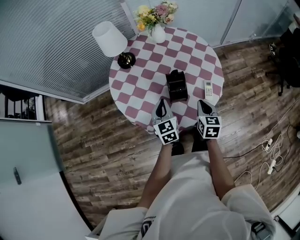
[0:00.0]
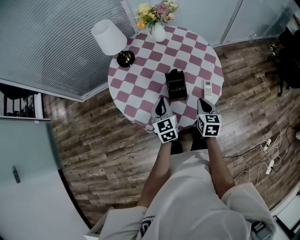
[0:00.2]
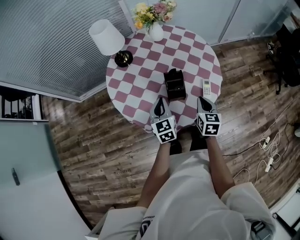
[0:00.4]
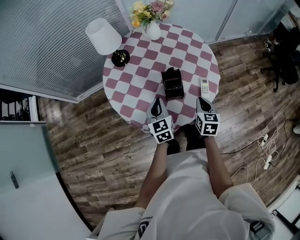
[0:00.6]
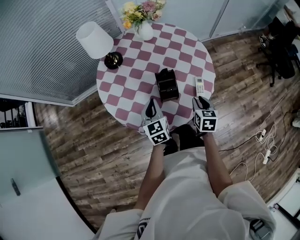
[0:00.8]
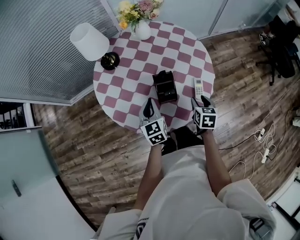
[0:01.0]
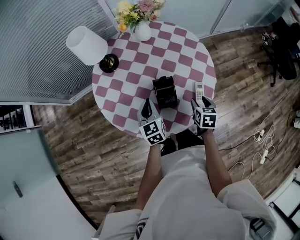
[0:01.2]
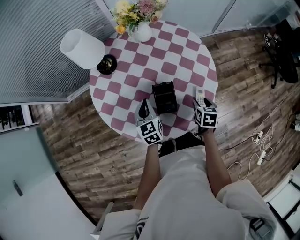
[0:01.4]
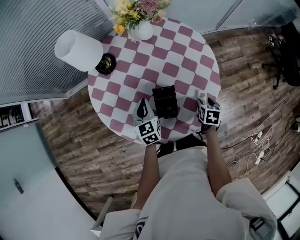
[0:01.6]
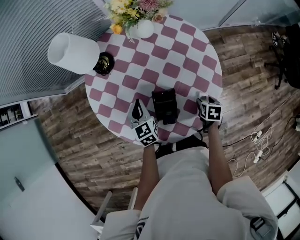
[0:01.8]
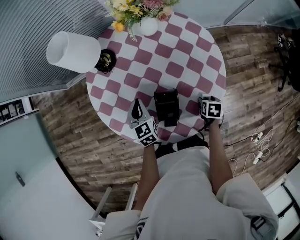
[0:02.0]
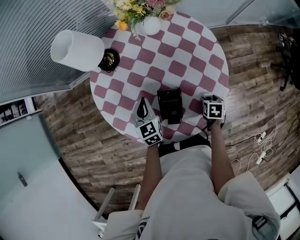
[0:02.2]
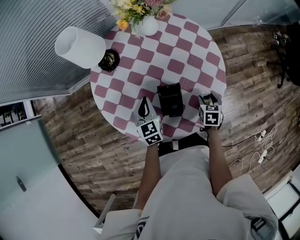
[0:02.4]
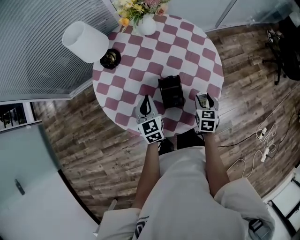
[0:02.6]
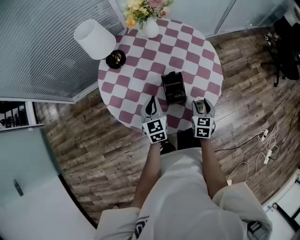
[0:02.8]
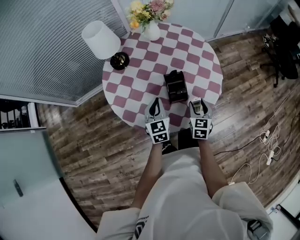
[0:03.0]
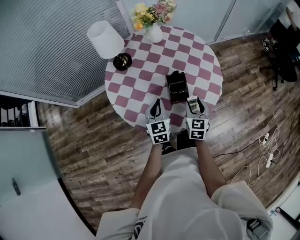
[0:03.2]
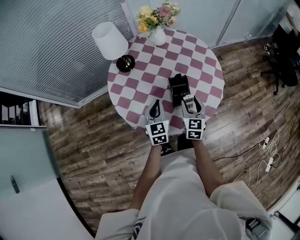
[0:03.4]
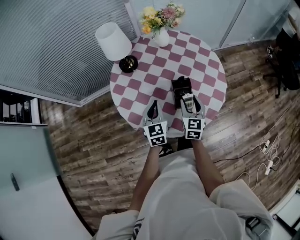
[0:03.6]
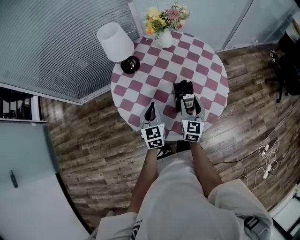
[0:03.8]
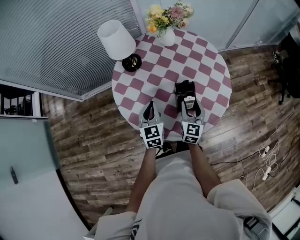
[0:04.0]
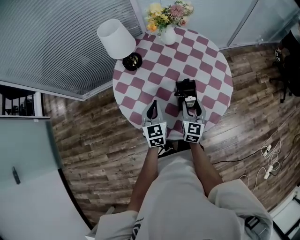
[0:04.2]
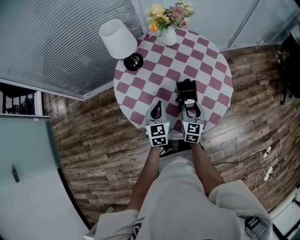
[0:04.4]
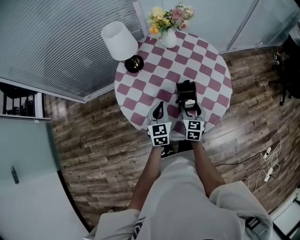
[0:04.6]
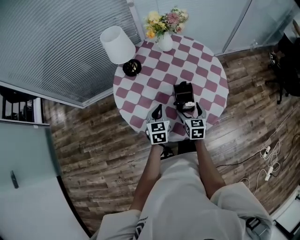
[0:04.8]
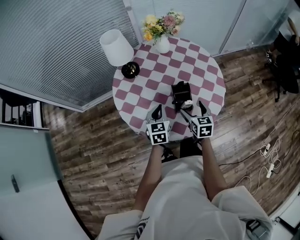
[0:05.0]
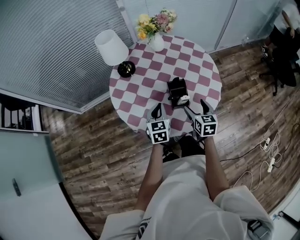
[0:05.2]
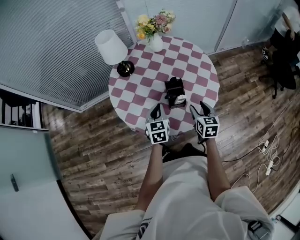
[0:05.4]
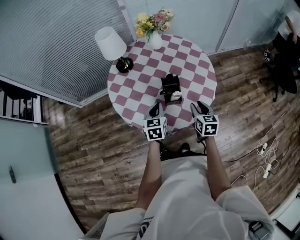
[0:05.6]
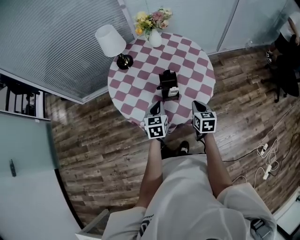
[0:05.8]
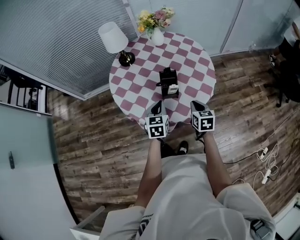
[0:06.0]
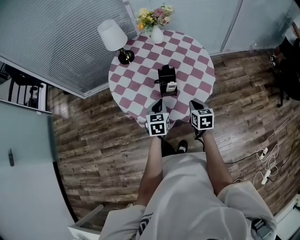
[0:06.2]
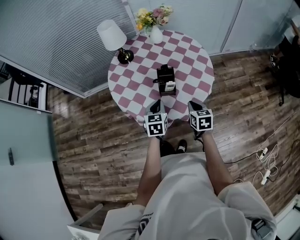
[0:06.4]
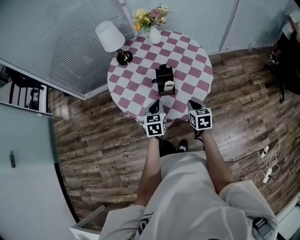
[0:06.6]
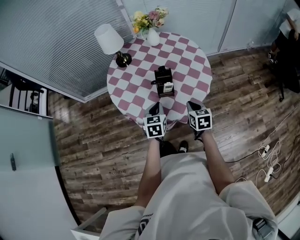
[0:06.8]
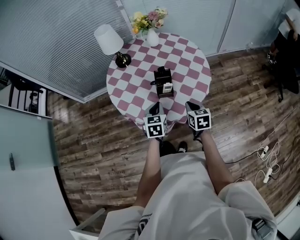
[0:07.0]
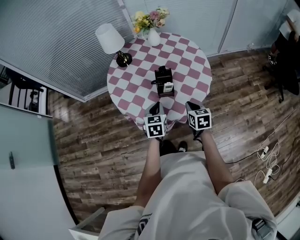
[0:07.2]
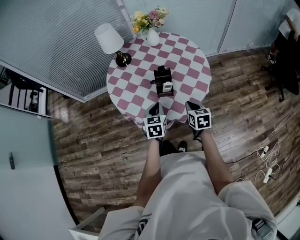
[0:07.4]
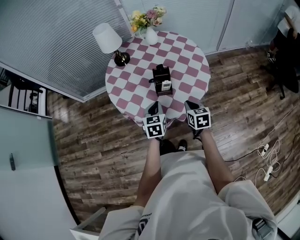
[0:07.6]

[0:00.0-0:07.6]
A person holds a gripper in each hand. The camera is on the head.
0:00.0 to 0:01.6: The left gripper heads forward and downward, covering approximately 15 cm; the right gripper goes approximately 20 cm downward, to the right and forward, rotates some 30 degrees, and opens its fingers.
0:01.6 to 0:03.0: The left gripper changes place by about 10 cm. The right gripper ends up some 15 cm from where it was, and tilts its fingers approximately 30 degrees upward.
0:03.0 to 0:04.6: The right gripper travels to the left by roughly 10 cm.
0:04.6 to 0:06.0: The right gripper moves to the right, backward and upward, some 15 cm, and closes up, while the left gripper travels backward and to the right by approximately 15 cm.
0:06.0 to 0:07.6: The grippers make only small movements.

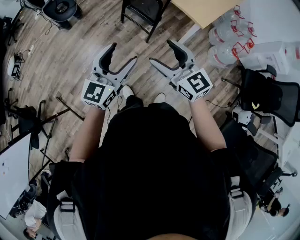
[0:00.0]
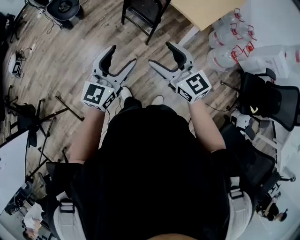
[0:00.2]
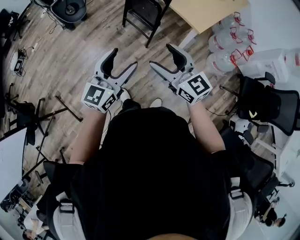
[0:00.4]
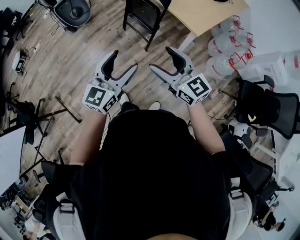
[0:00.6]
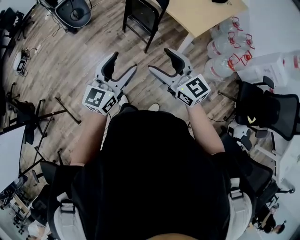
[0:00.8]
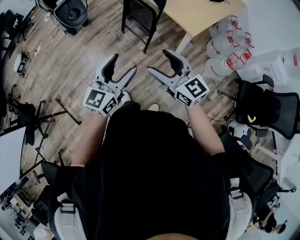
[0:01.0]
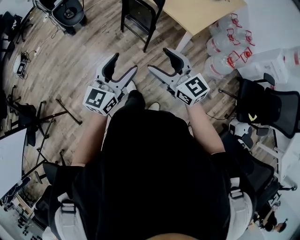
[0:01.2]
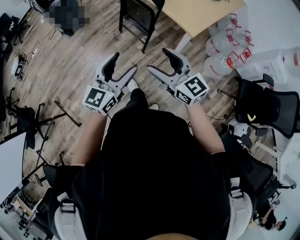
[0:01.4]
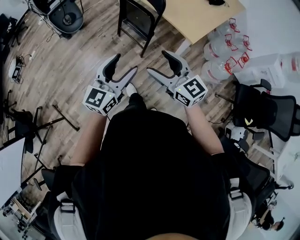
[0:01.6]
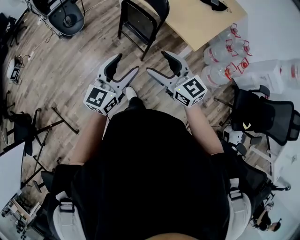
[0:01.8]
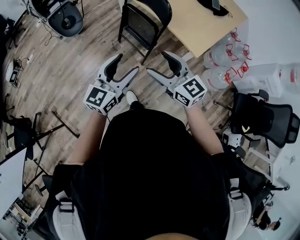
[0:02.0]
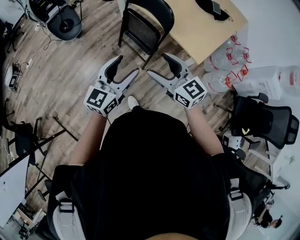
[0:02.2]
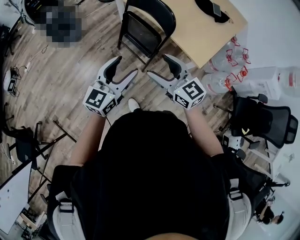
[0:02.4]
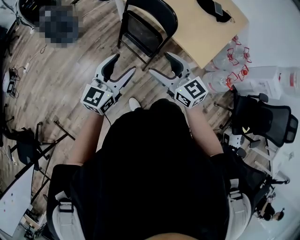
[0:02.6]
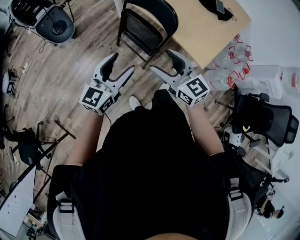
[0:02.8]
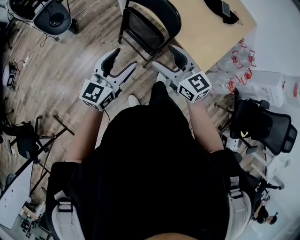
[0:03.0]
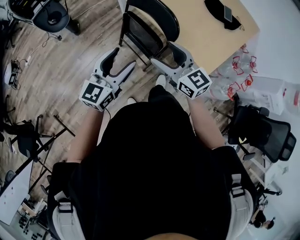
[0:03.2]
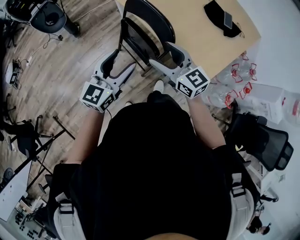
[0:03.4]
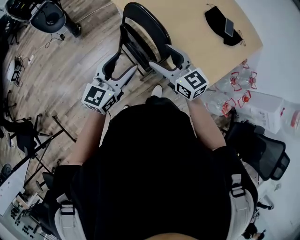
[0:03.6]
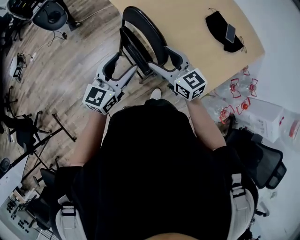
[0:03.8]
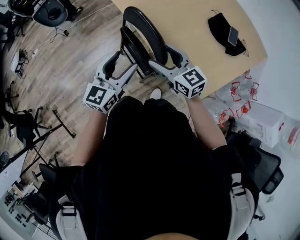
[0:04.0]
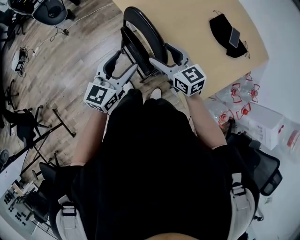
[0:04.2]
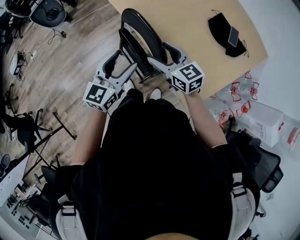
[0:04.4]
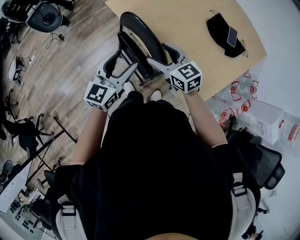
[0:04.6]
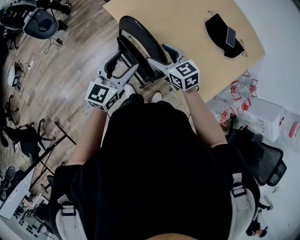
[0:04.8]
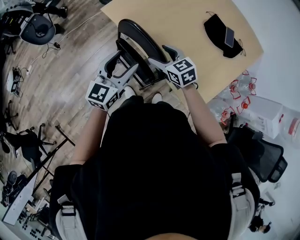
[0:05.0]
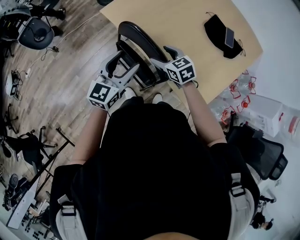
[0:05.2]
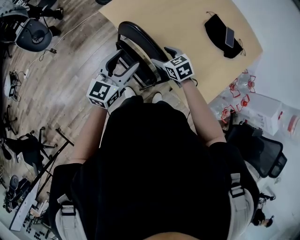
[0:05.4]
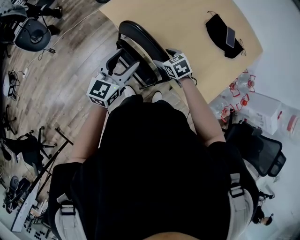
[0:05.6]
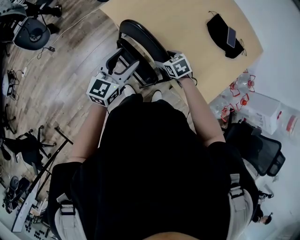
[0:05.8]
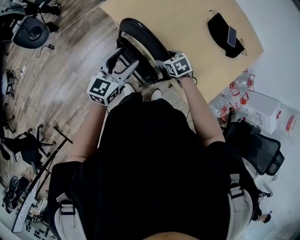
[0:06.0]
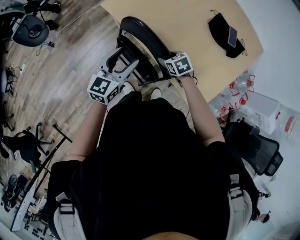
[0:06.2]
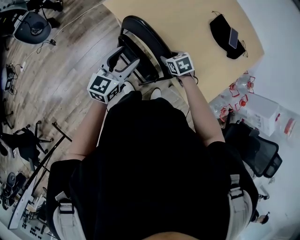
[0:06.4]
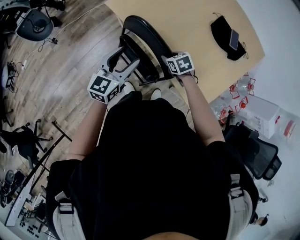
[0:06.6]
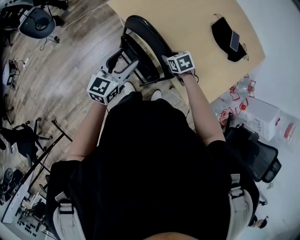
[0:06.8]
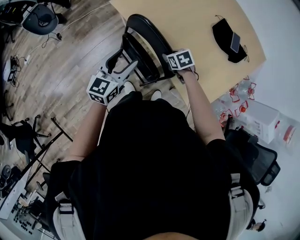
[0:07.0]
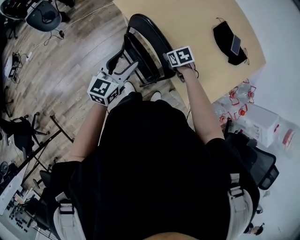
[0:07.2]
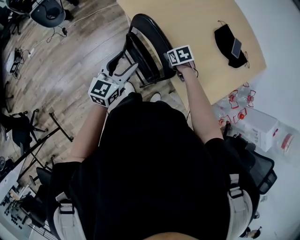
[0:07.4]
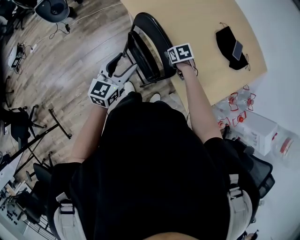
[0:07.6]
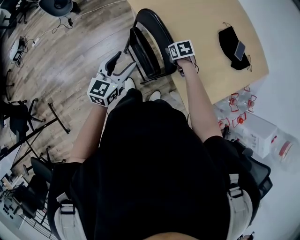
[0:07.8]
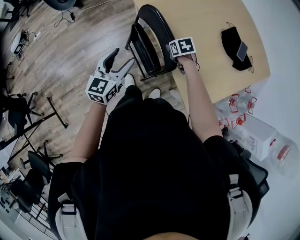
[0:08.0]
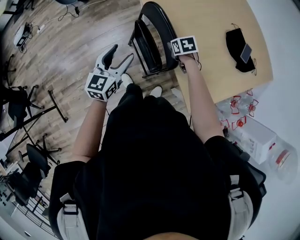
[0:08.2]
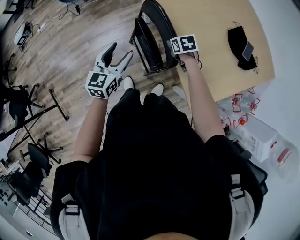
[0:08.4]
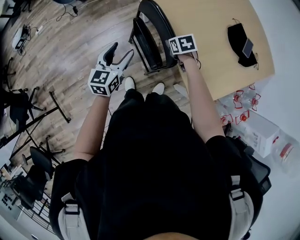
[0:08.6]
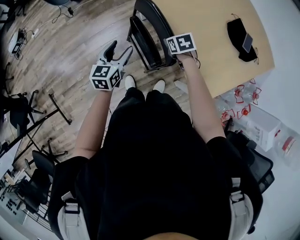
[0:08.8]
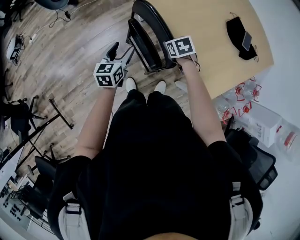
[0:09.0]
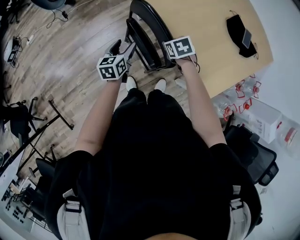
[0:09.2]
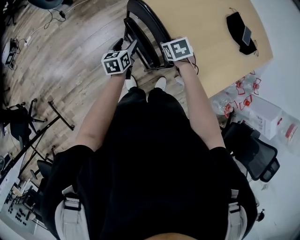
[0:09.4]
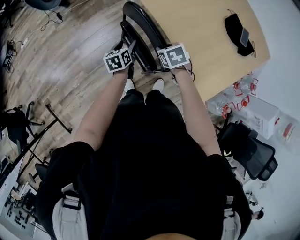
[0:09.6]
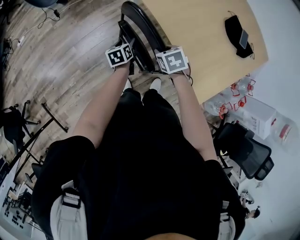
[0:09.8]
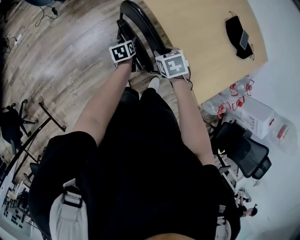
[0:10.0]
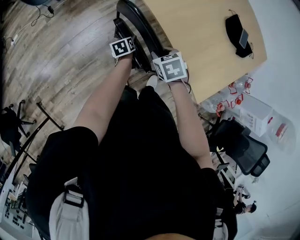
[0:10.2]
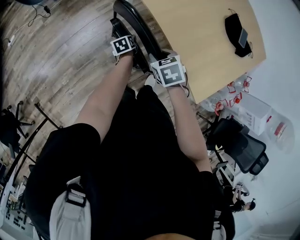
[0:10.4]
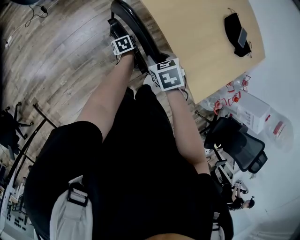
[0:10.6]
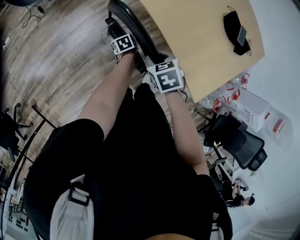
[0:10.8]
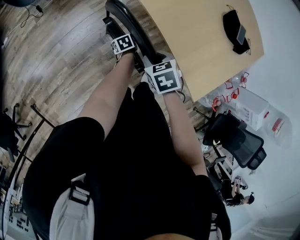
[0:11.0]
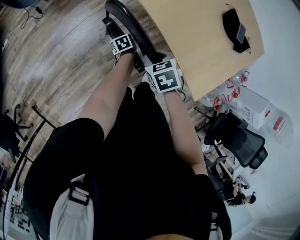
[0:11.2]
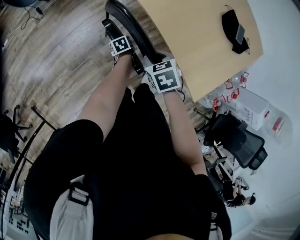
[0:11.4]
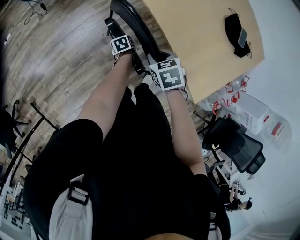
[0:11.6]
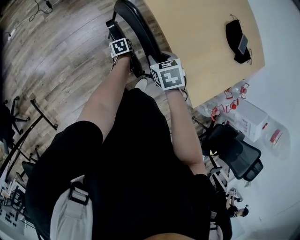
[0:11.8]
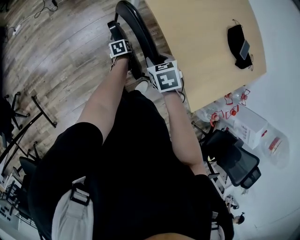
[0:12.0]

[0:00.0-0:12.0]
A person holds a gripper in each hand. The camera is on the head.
0:00.0 to 0:01.6: The grippers both shift to the right by roughly 10 cm.
0:01.6 to 0:03.0: The grippers both shift forward by approximately 30 cm.
0:03.0 to 0:04.4: Both grippers travel together forward and to the right, about 25 cm.
0:04.4 to 0:06.0: The left gripper is displaced forward and downward by about 15 cm. Meanwhile the right gripper is displaced downward and forward by roughly 20 cm, and points its fingers about 40 degrees further downward.
0:06.0 to 0:07.6: The right gripper closes up. Meanwhile the left gripper moves backward, about 10 cm.
0:07.6 to 0:09.0: The right gripper shifts about 10 cm to the left. Meanwhile the left gripper is displaced downward and to the left by some 15 cm.
0:09.0 to 0:10.4: The right gripper travels to the left by approximately 10 cm. Meanwhile the left gripper shifts some 25 cm downward, and changes its angle by approximately 40 degrees.
0:10.4 to 0:12.0: The grippers stay close to where they were, moving slightly.

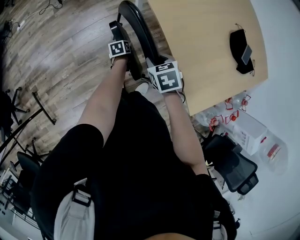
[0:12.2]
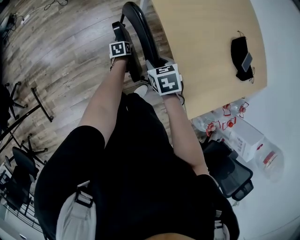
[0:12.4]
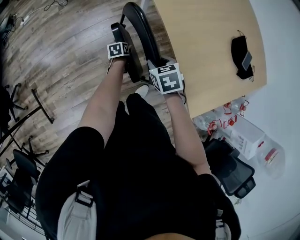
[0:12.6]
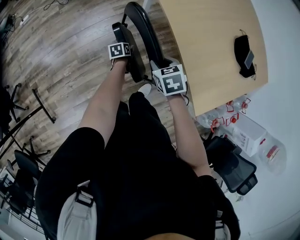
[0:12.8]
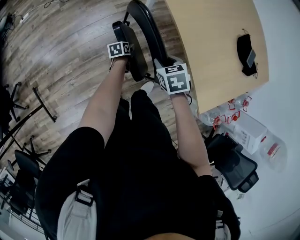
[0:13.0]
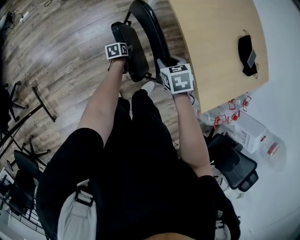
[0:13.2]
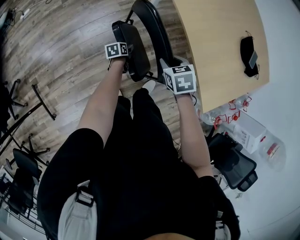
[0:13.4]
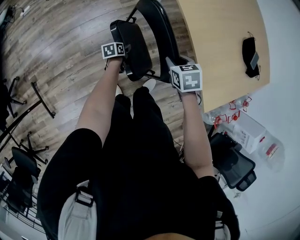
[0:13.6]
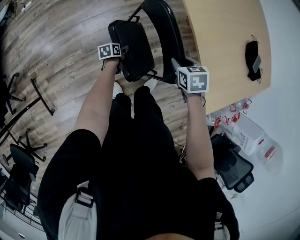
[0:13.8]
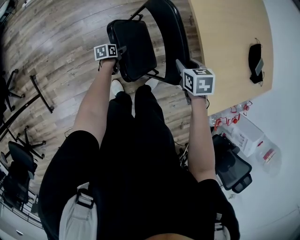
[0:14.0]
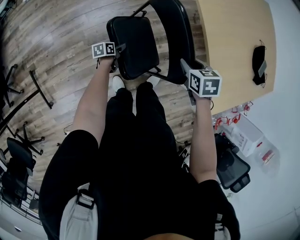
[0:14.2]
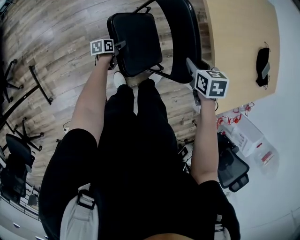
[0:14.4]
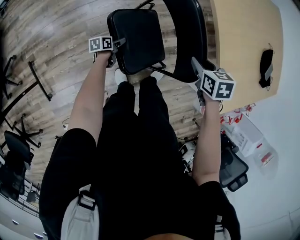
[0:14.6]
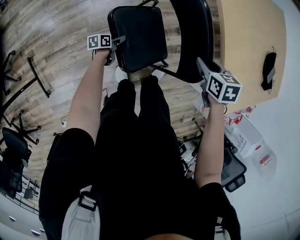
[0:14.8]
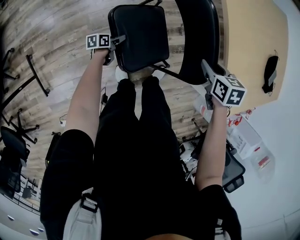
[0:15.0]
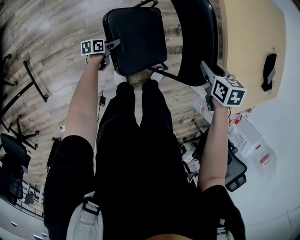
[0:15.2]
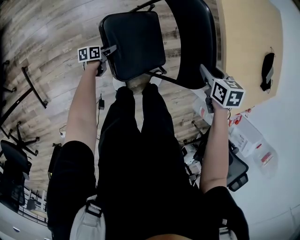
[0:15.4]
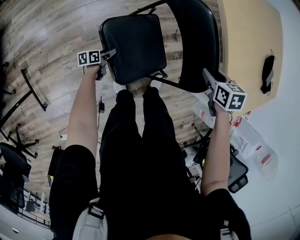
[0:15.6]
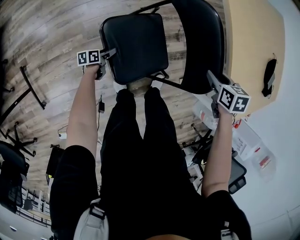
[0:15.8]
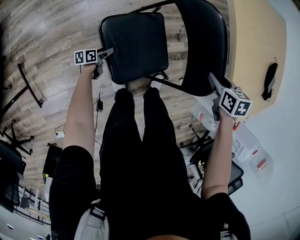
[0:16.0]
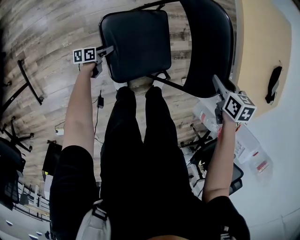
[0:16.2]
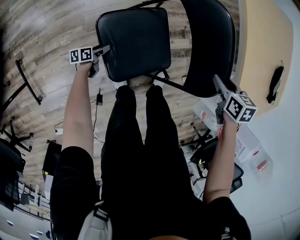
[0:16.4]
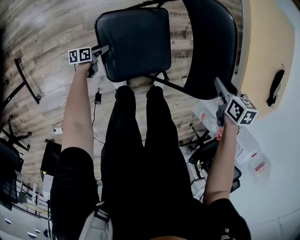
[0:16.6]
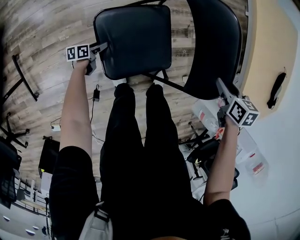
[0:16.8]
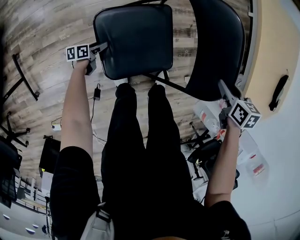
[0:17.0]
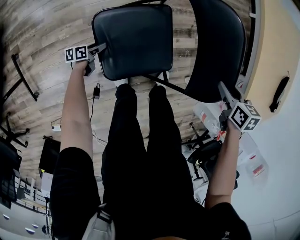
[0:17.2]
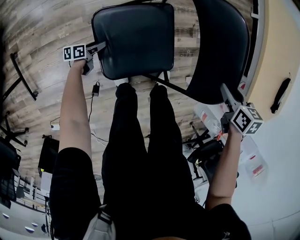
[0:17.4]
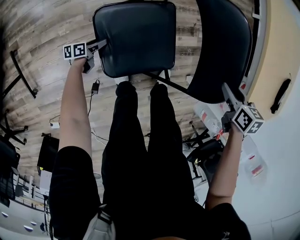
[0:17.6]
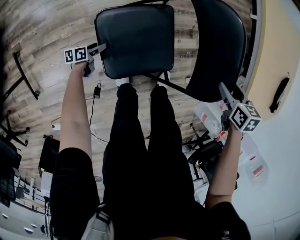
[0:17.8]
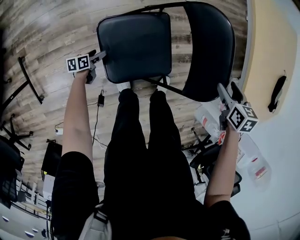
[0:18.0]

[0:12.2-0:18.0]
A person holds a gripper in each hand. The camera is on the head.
0:12.2 to 0:13.6: The left gripper goes about 15 cm to the left and backward, while the right gripper moves to the left, roughly 10 cm.
0:13.6 to 0:15.0: The right gripper moves downward, approximately 5 cm. Meanwhile the left gripper goes roughly 20 cm to the left, downward and backward.
0:15.0 to 0:16.6: The right gripper goes roughly 10 cm downward; the left gripper travels downward, to the left and backward by roughly 15 cm.
0:16.6 to 0:18.0: The left gripper moves to the left, approximately 5 cm; the right gripper opens its fingers.
